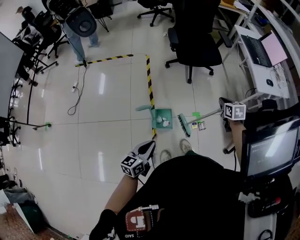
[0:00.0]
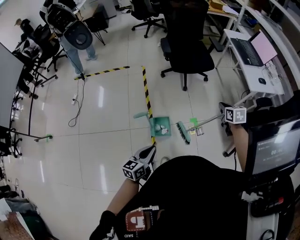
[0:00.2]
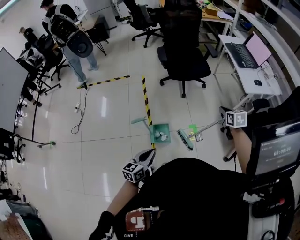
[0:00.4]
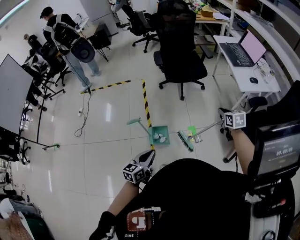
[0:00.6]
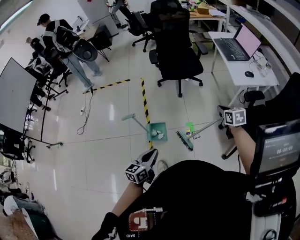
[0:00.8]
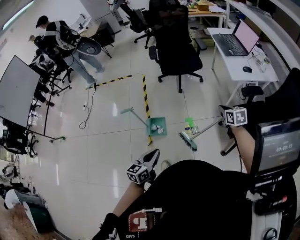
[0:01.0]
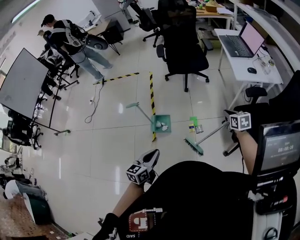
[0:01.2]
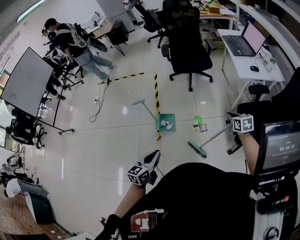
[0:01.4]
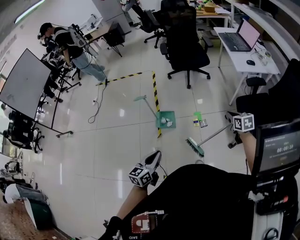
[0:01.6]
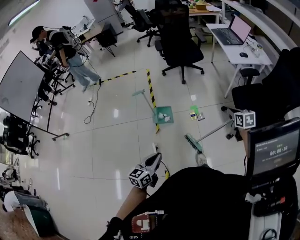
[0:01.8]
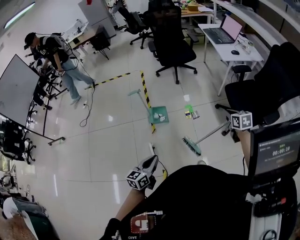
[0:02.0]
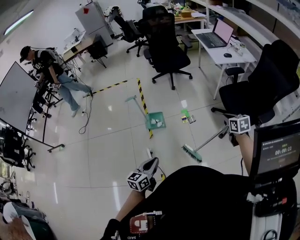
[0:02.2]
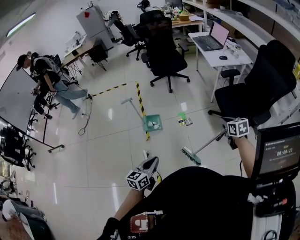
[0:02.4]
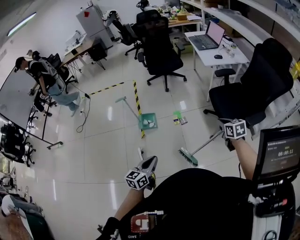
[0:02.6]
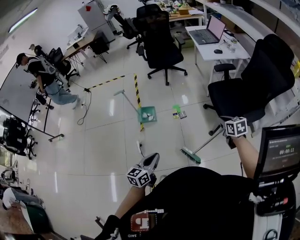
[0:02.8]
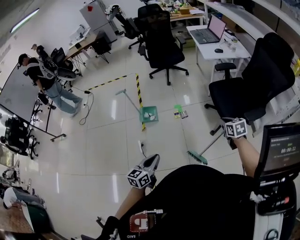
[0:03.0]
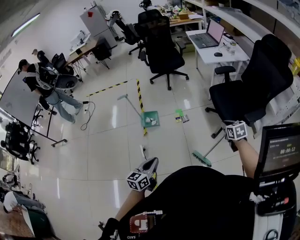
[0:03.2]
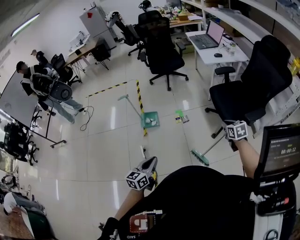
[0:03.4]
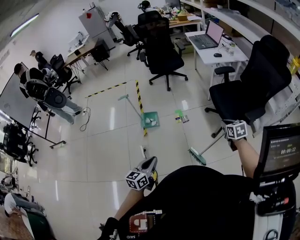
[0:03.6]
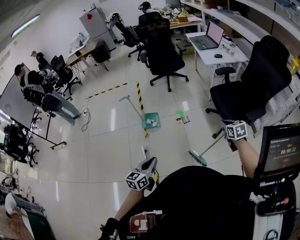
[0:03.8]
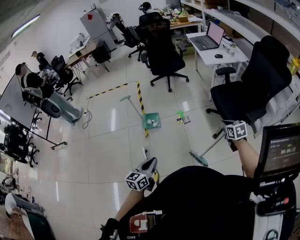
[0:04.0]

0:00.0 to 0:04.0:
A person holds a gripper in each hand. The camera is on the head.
0:00.0 to 0:01.4: The two grippers go some 35 cm to the right and backward.
0:01.4 to 0:02.6: The left gripper moves backward and to the right, some 25 cm; the right gripper moves backward, approximately 30 cm.
0:02.6 to 0:04.0: The right gripper changes place by roughly 5 cm; the left gripper is displaced backward by about 5 cm, and moves roughly 5 cm to the right and comes back.

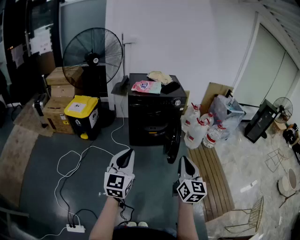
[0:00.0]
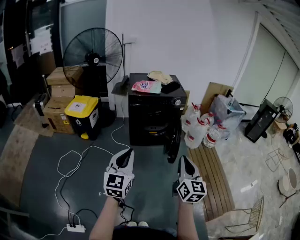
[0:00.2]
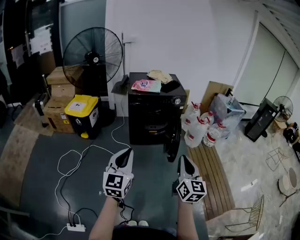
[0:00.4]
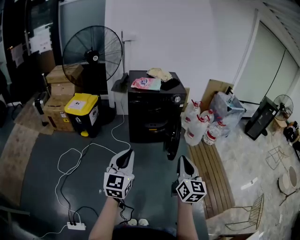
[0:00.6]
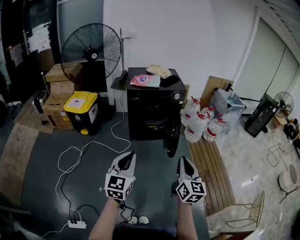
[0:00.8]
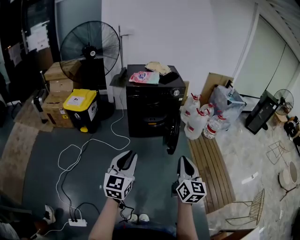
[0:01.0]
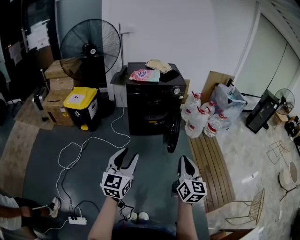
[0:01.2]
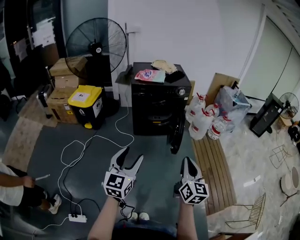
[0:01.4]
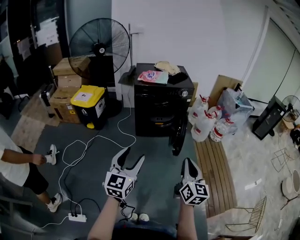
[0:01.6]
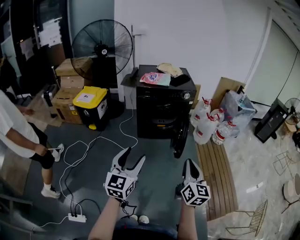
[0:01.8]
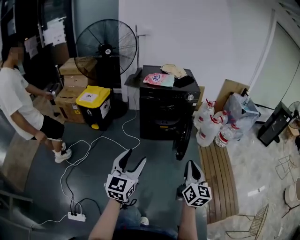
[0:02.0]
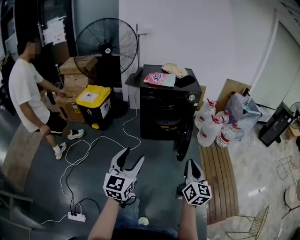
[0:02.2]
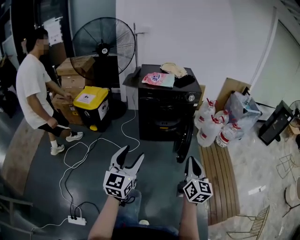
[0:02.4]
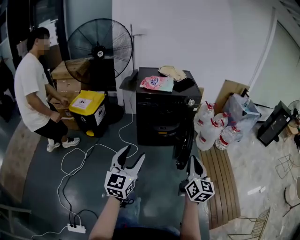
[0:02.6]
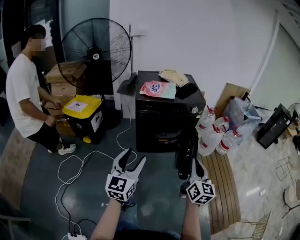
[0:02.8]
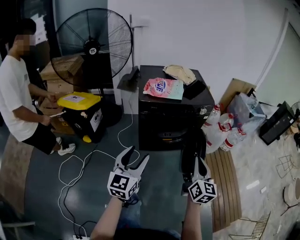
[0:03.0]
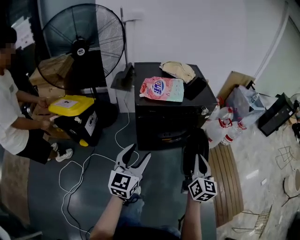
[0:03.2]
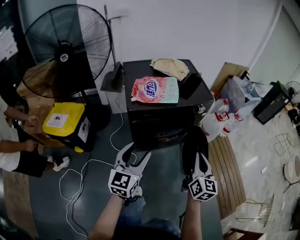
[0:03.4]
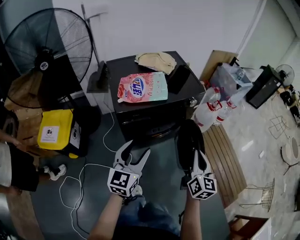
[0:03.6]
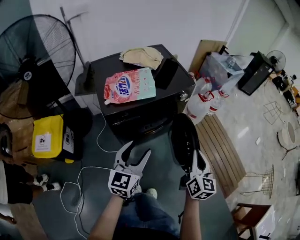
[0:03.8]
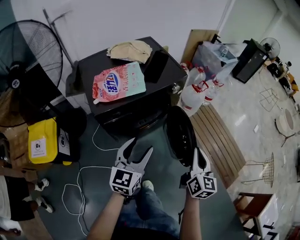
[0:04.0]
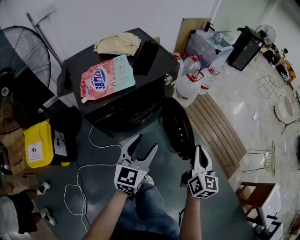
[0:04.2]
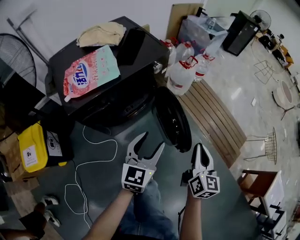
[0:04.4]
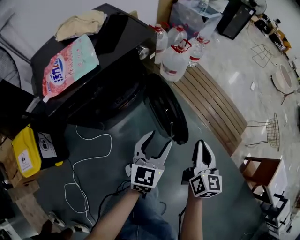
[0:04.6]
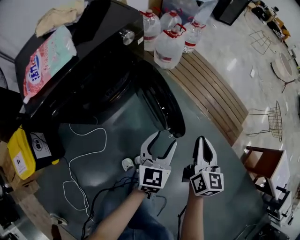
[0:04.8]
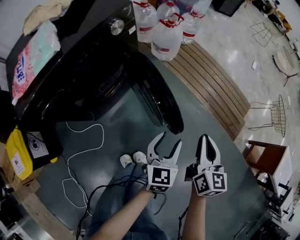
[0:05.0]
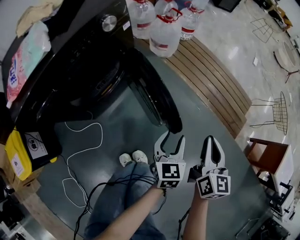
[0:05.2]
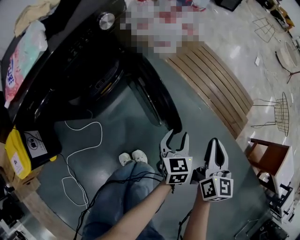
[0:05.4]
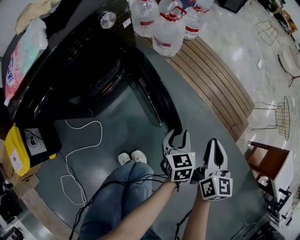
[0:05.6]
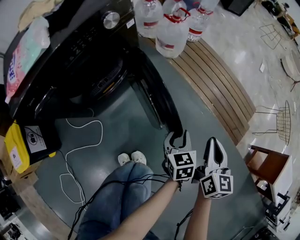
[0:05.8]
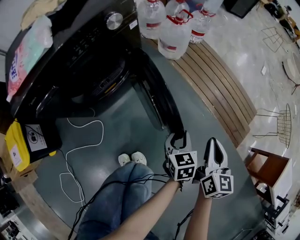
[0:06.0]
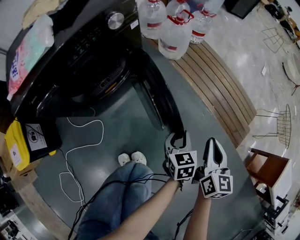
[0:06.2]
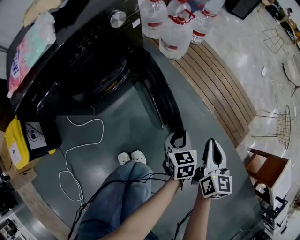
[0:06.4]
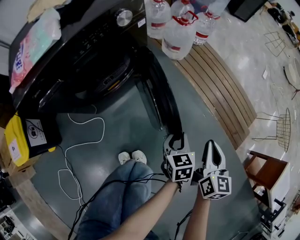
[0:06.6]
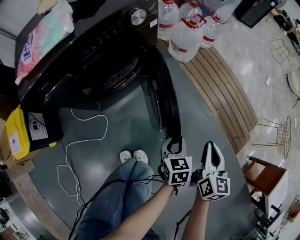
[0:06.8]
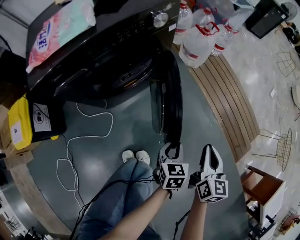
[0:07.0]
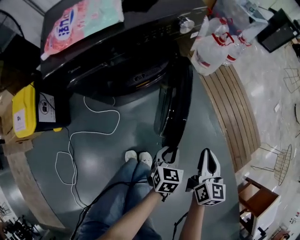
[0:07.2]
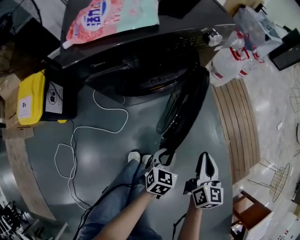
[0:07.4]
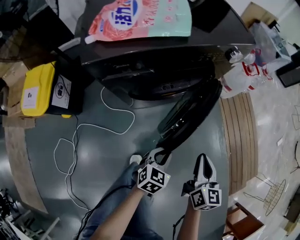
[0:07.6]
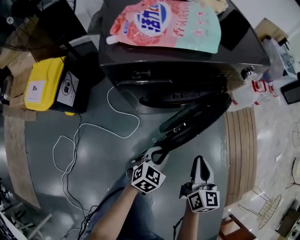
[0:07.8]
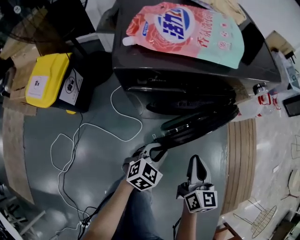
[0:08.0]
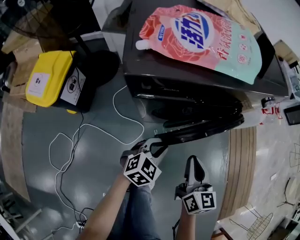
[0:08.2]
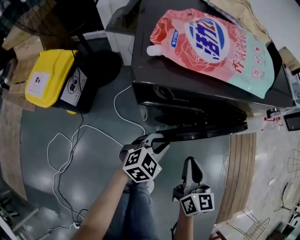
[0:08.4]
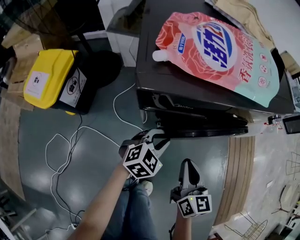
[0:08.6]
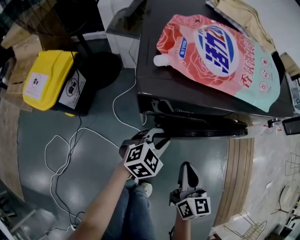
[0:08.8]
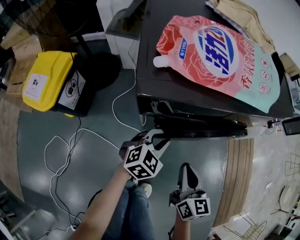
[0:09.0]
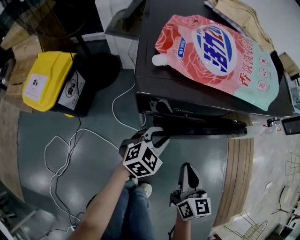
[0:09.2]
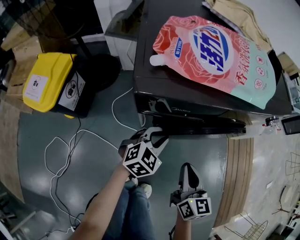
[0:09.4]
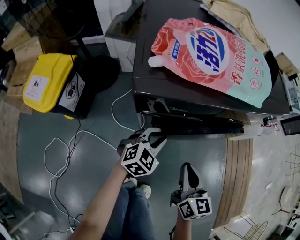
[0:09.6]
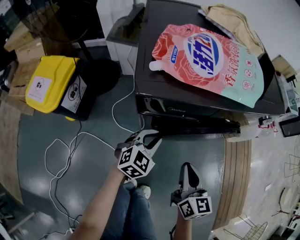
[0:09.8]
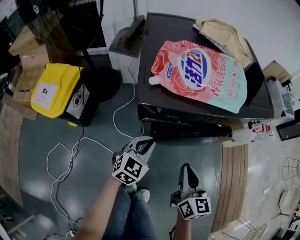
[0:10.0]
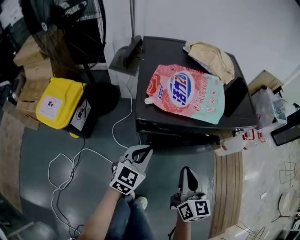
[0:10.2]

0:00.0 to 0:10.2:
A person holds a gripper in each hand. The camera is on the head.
0:00.0 to 0:01.4: The right gripper moves some 5 cm. Meanwhile the left gripper shifts by roughly 5 cm, and opens.
0:01.4 to 0:03.0: Both grippers travel together forward, about 35 cm.
0:03.0 to 0:04.4: The right gripper changes place by roughly 15 cm, and rotates about 40 degrees, while the left gripper shifts by approximately 30 cm, and rotates roughly 40 degrees.
0:04.4 to 0:05.8: The left gripper travels downward and to the right by about 40 cm, changes its angle by roughly 30 degrees, and closes up. Meanwhile the right gripper goes roughly 25 cm downward and to the right.
0:05.8 to 0:07.2: The left gripper is displaced to the left and backward by some 15 cm. The right gripper heads to the left, covering approximately 15 cm.
0:07.2 to 0:08.8: The right gripper heads to the left, covering roughly 35 cm, and rotates roughly 30 degrees, while the left gripper goes about 40 cm to the left and forward, and changes its angle by roughly 20 degrees.
0:08.8 to 0:10.2: Both grippers travel together upward, approximately 20 cm. The left gripper turns by roughly 30 degrees.

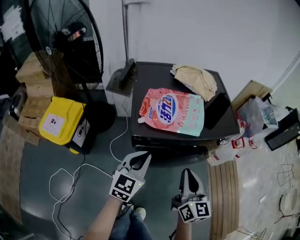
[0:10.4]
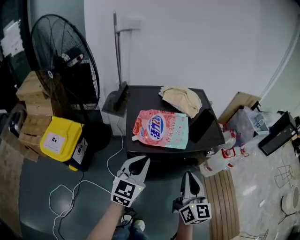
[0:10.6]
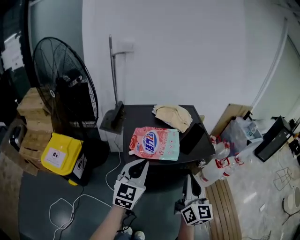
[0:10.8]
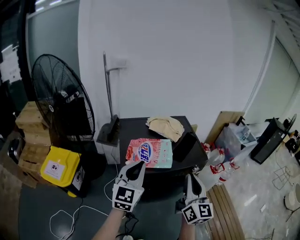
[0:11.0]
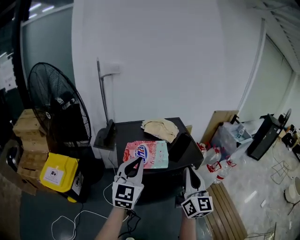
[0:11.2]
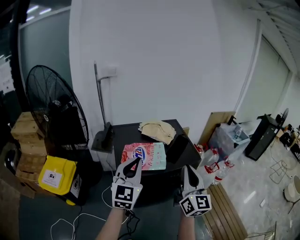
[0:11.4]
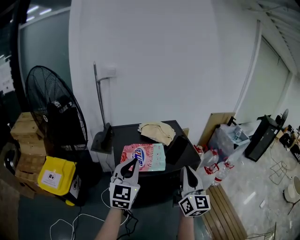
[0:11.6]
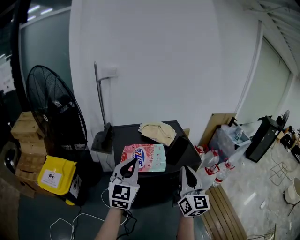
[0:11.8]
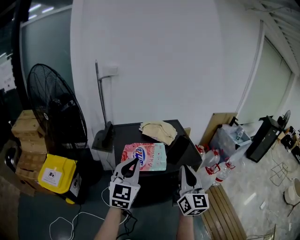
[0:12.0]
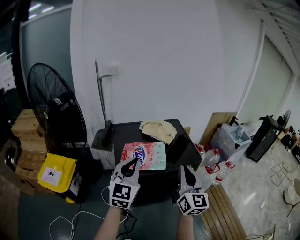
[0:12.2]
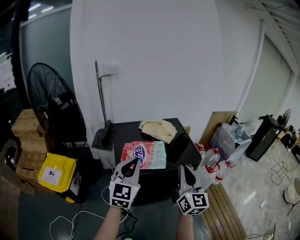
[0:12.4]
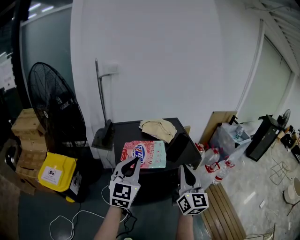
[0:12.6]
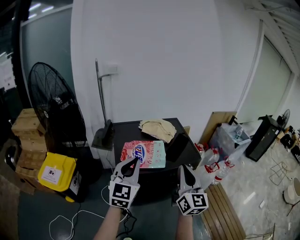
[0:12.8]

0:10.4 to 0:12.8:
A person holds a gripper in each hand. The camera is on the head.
0:10.4 to 0:11.6: Both grippers move upward, some 25 cm. The right gripper turns by some 20 degrees, while the left gripper swivels about 20 degrees.
0:11.6 to 0:12.8: The grippers stay close to where they were, moving slightly.

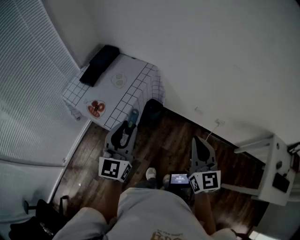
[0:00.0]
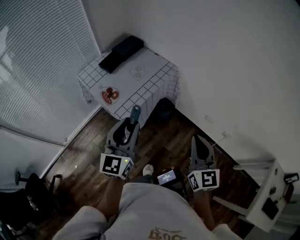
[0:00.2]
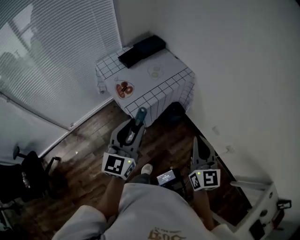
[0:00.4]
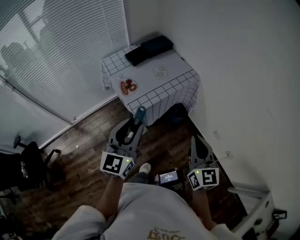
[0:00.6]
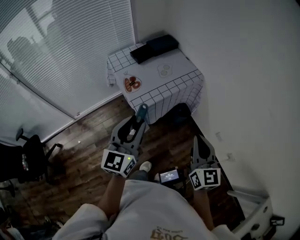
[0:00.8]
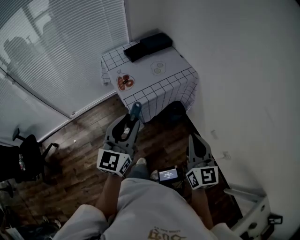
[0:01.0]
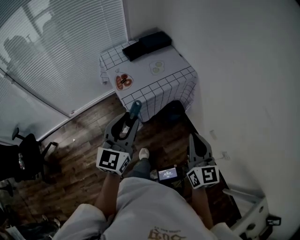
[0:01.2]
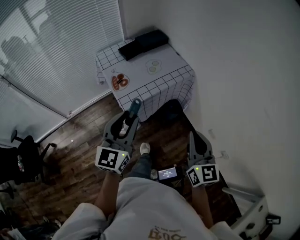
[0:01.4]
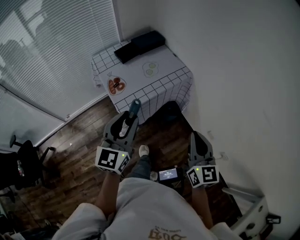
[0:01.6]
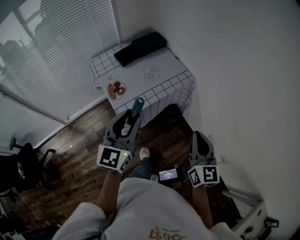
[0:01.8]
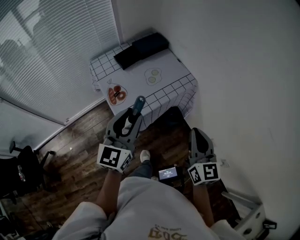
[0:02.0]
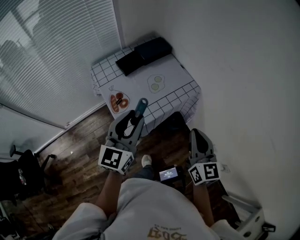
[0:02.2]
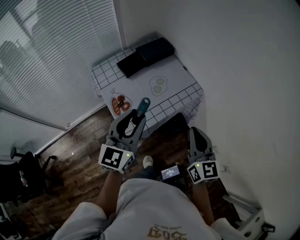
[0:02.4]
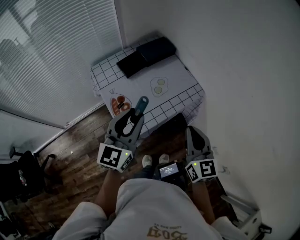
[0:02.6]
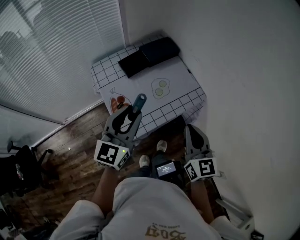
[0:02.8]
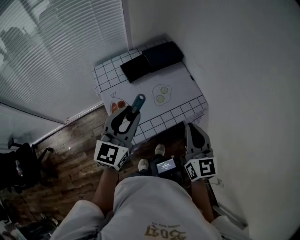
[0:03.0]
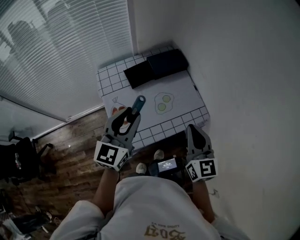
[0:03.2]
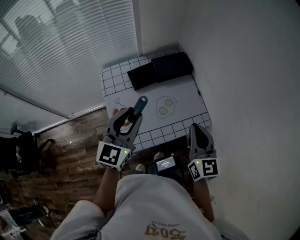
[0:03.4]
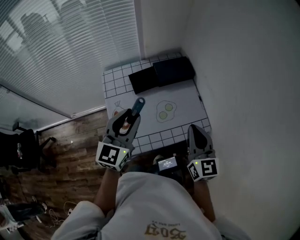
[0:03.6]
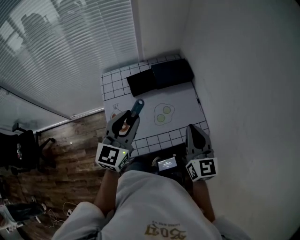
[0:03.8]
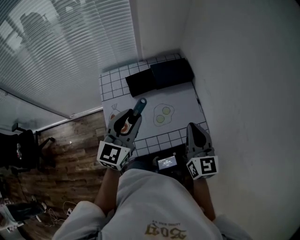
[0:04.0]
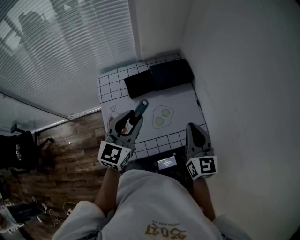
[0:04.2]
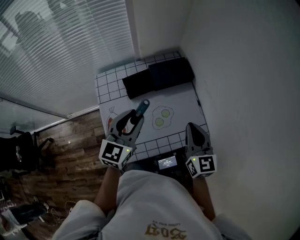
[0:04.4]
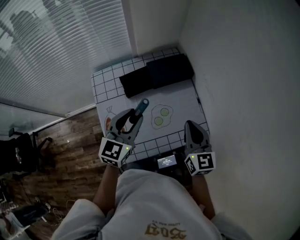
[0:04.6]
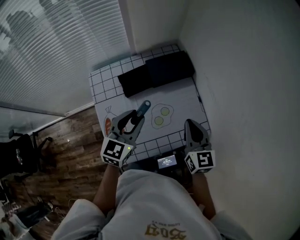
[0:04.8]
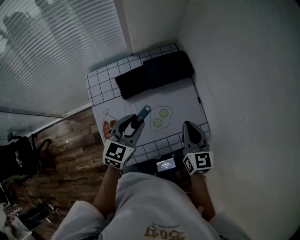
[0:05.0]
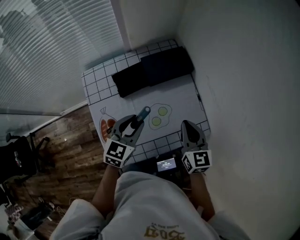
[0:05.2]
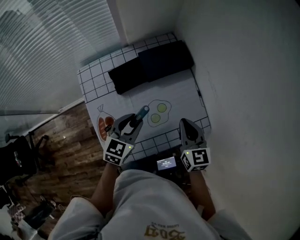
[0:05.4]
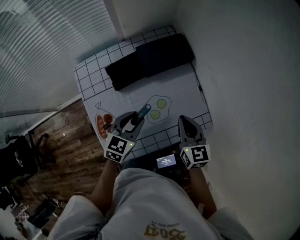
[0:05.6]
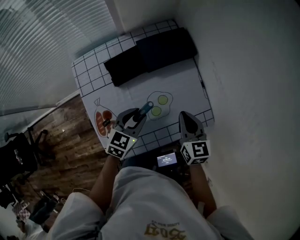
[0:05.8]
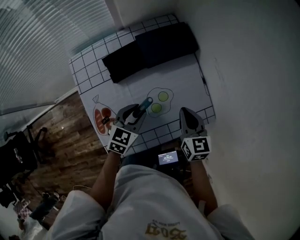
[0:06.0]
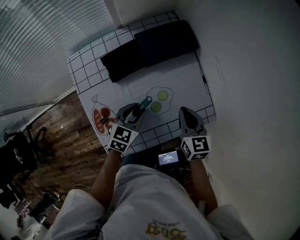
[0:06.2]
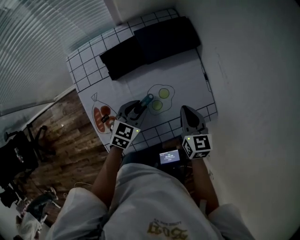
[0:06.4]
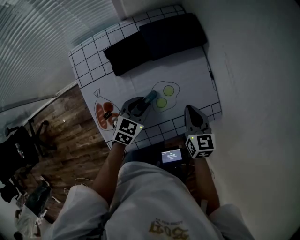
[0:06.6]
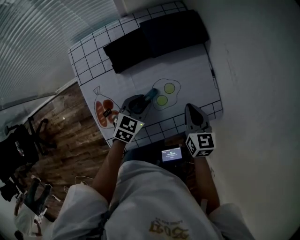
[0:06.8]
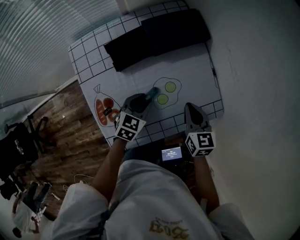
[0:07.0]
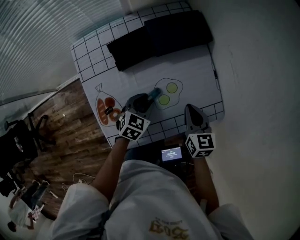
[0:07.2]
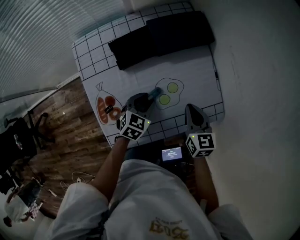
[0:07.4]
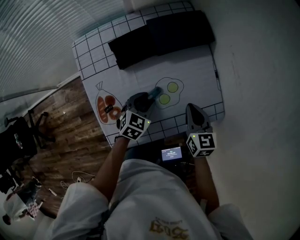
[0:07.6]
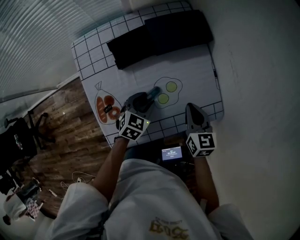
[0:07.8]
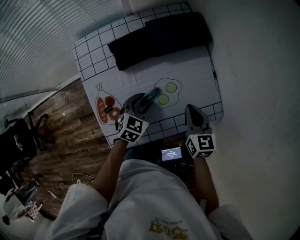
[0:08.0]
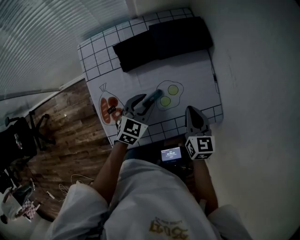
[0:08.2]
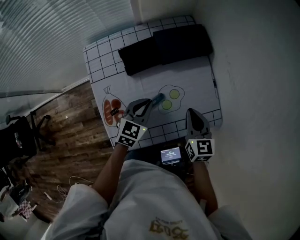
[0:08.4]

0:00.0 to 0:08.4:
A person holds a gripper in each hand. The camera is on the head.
0:00.0 to 0:01.4: The right gripper is displaced forward by about 5 cm, and changes its angle by about 20 degrees.
0:01.4 to 0:02.8: The two grippers go some 25 cm forward.
0:02.8 to 0:04.2: The two grippers go approximately 20 cm forward.
0:04.2 to 0:05.6: Both grippers travel together downward, about 15 cm. The left gripper changes its angle by about 30 degrees.
0:05.6 to 0:07.0: Both grippers travel together downward, some 10 cm.
0:07.0 to 0:08.4: The left gripper goes about 5 cm upward, and closes.
